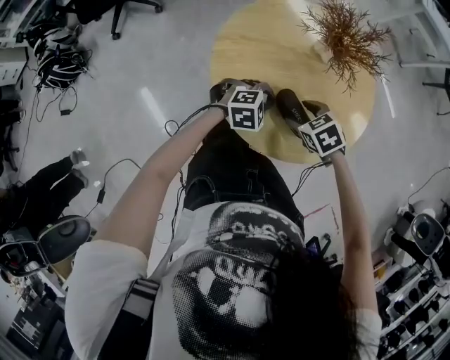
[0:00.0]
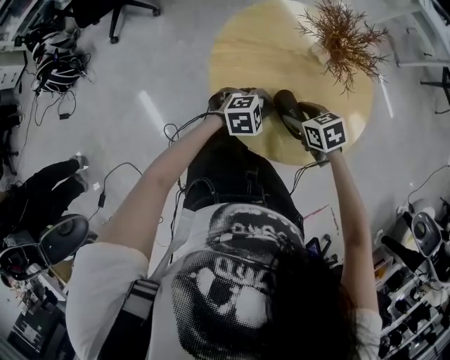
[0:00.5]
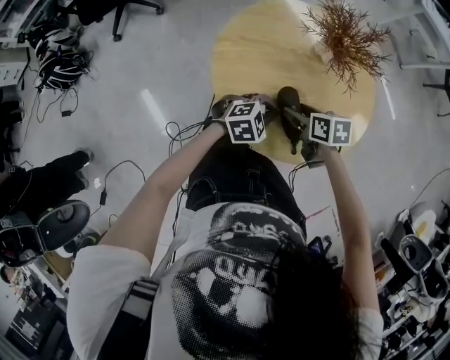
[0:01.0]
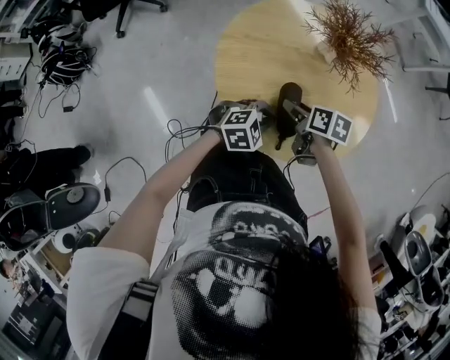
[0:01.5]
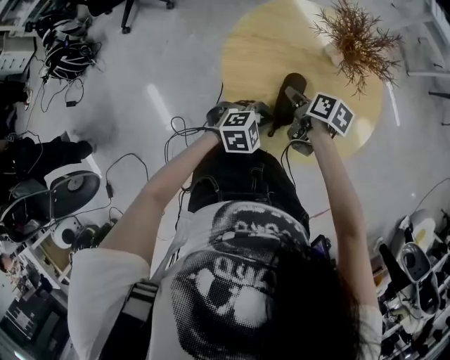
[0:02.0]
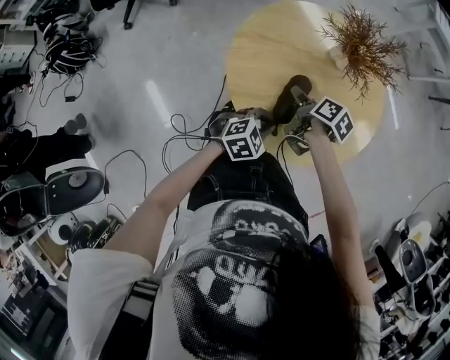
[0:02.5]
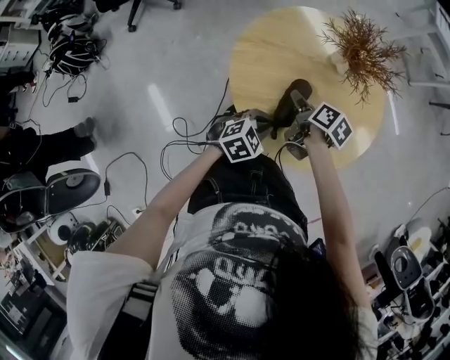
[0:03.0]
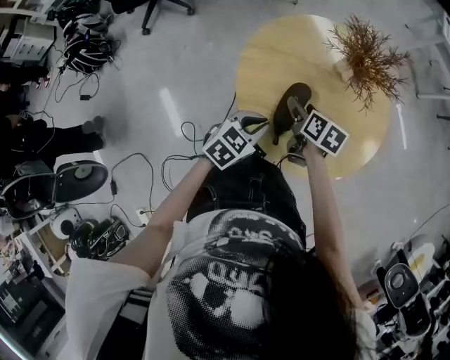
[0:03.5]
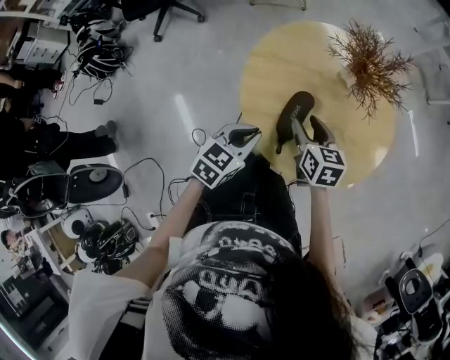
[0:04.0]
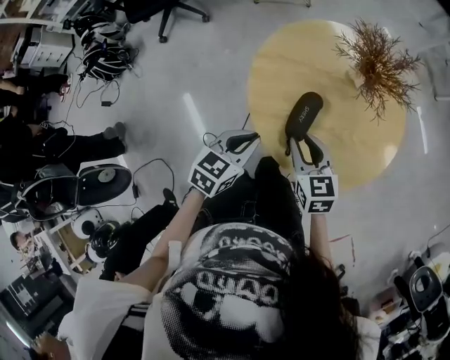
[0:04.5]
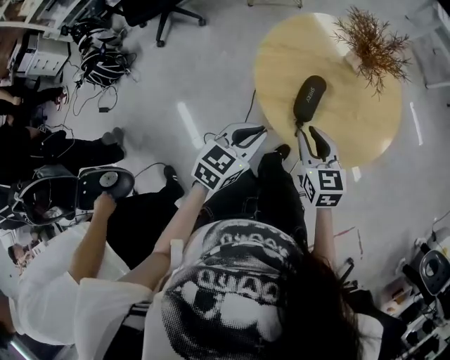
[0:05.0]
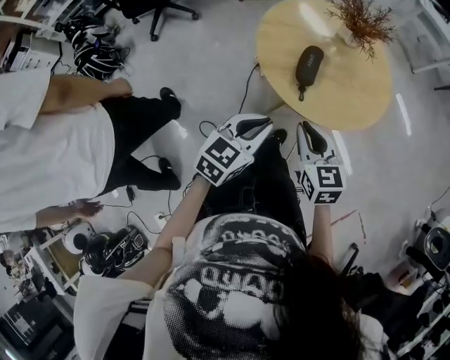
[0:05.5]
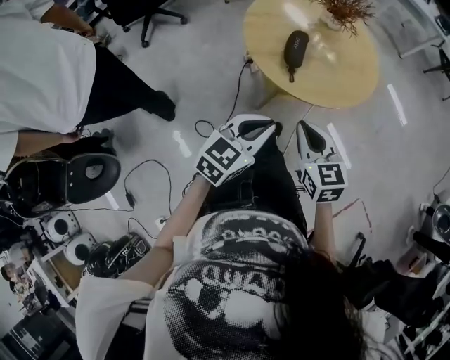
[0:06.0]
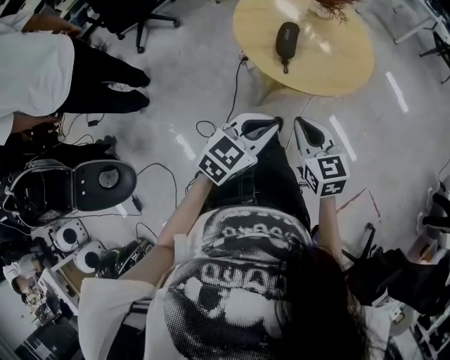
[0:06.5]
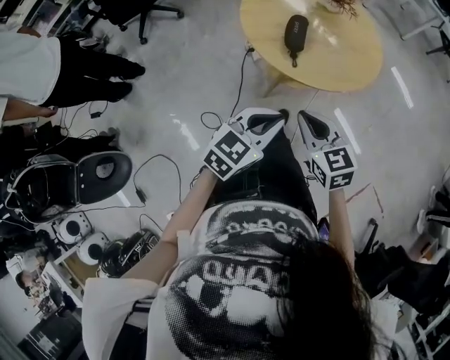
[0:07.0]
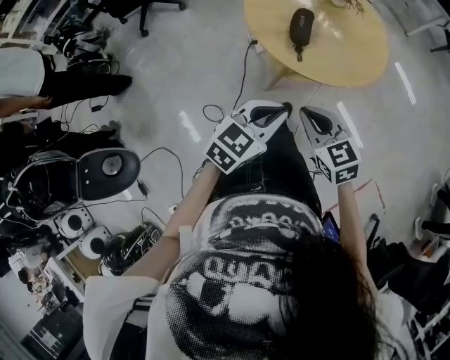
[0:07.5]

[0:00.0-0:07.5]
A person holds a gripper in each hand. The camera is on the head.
0:00.0 to 0:02.0: The right gripper shifts by some 5 cm, and rolls clockwise, seen from behind, by roughly 60 degrees. Meanwhile the left gripper changes place by some 5 cm.
0:02.0 to 0:04.0: The left gripper moves to the left and upward, roughly 10 cm, and changes its angle by roughly 50 degrees, while the right gripper is displaced upward by roughly 5 cm, and changes its angle by roughly 40 degrees.
0:04.0 to 0:05.5: The left gripper moves backward and upward, approximately 20 cm; the right gripper travels backward by approximately 25 cm, and closes.
0:05.5 to 0:07.5: Both grippers travel together backward, about 5 cm.

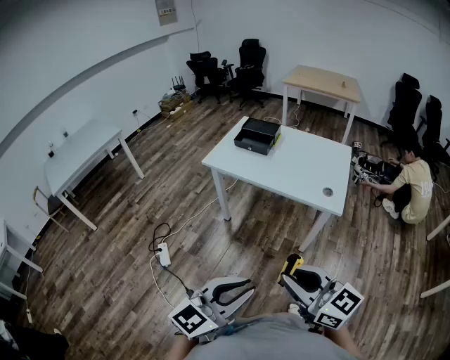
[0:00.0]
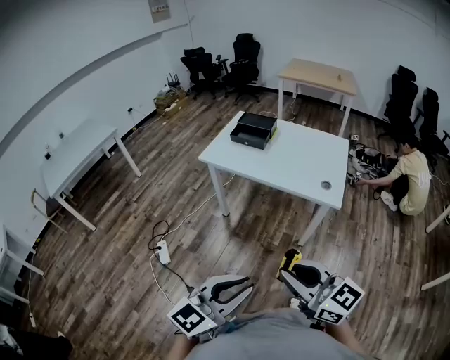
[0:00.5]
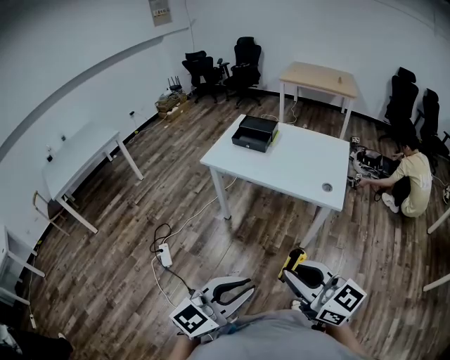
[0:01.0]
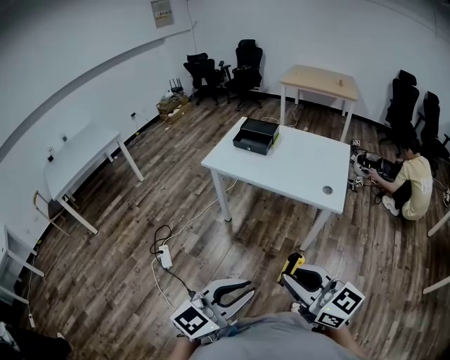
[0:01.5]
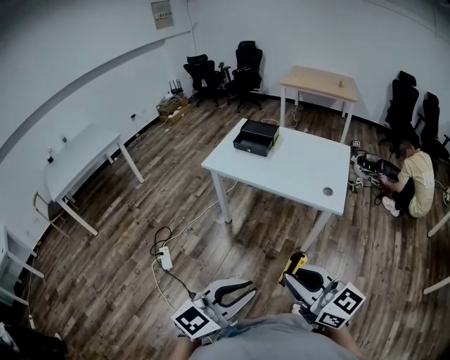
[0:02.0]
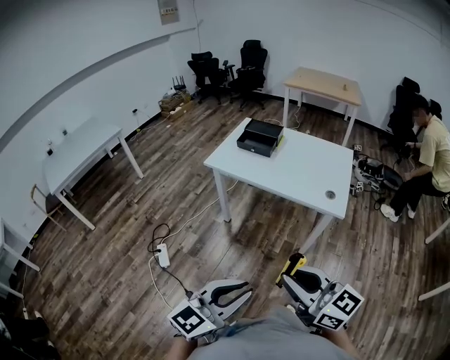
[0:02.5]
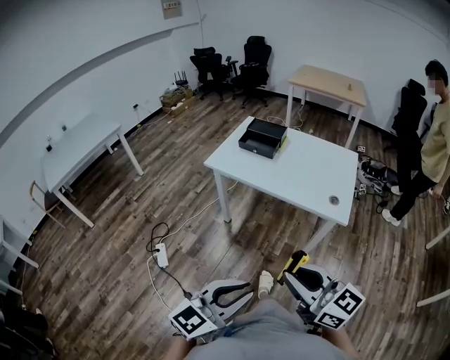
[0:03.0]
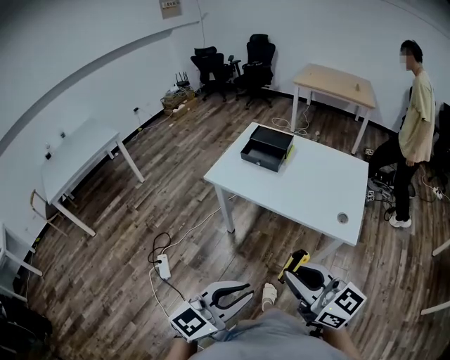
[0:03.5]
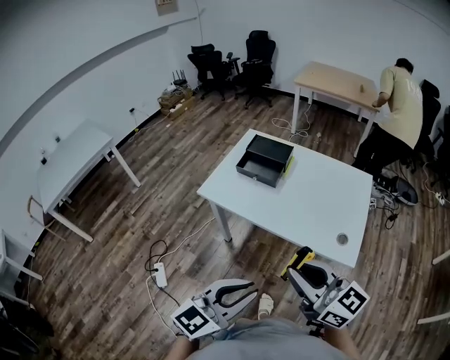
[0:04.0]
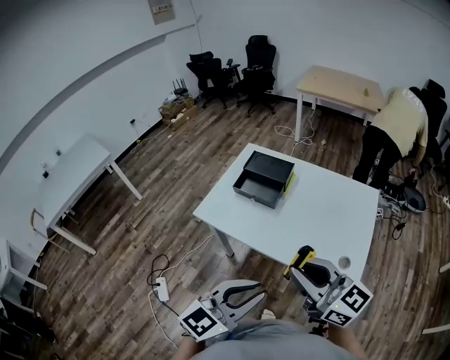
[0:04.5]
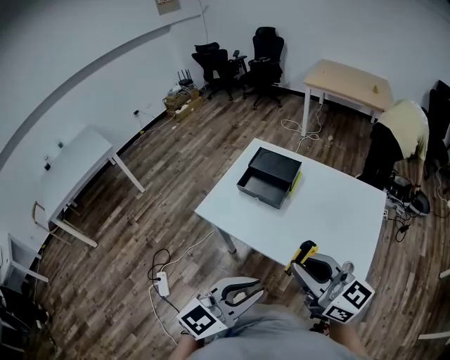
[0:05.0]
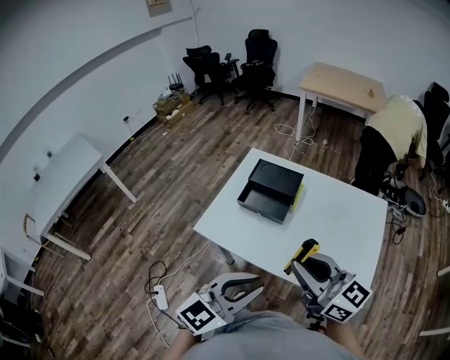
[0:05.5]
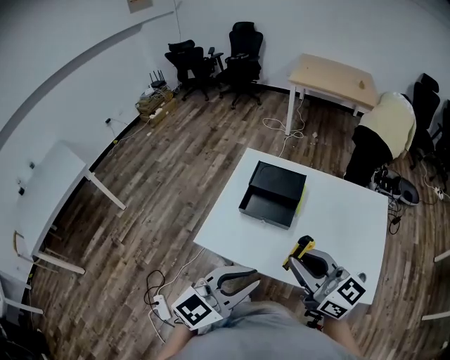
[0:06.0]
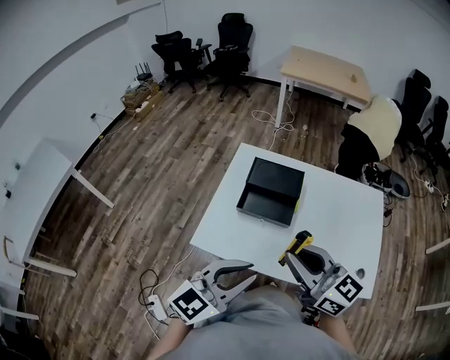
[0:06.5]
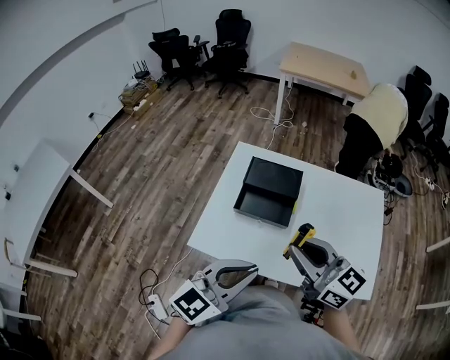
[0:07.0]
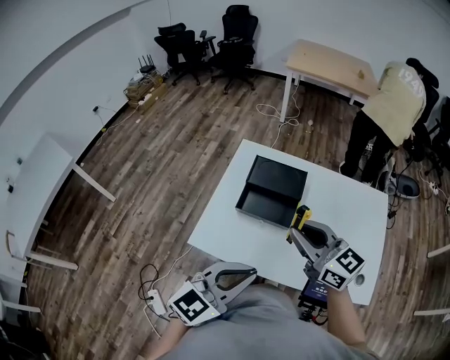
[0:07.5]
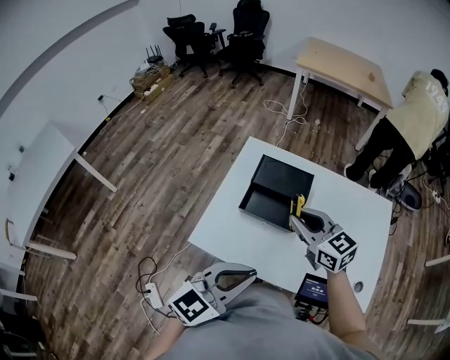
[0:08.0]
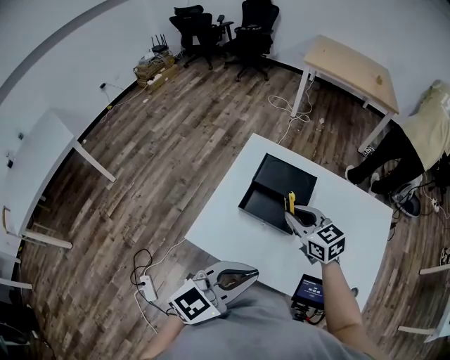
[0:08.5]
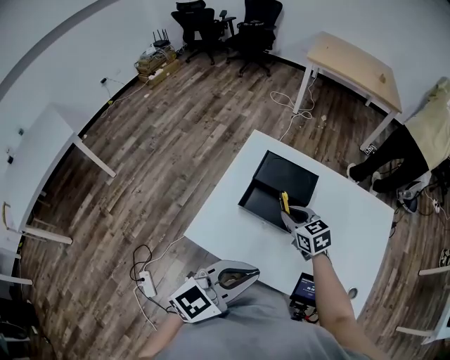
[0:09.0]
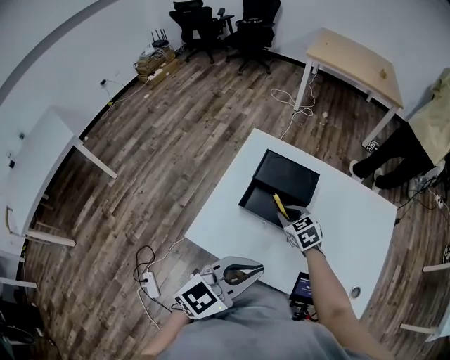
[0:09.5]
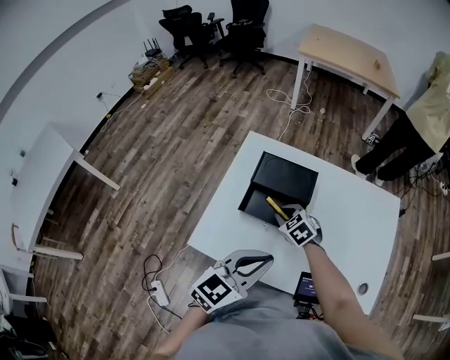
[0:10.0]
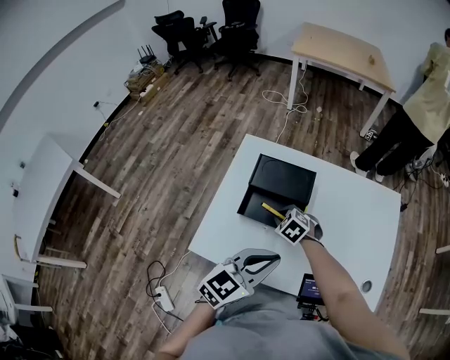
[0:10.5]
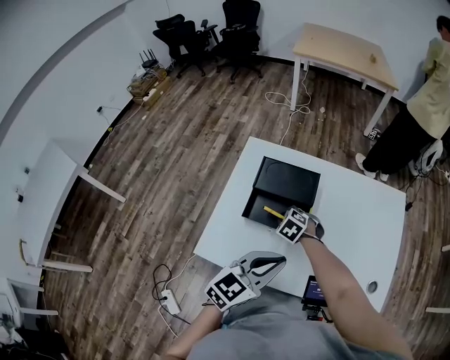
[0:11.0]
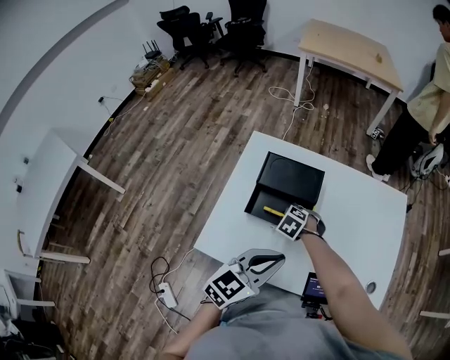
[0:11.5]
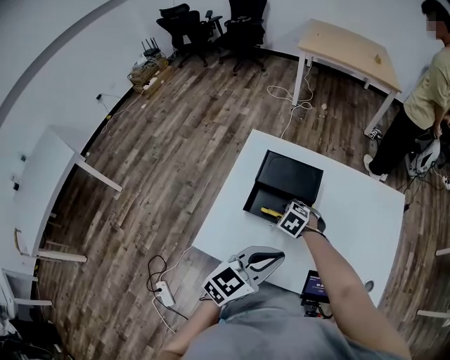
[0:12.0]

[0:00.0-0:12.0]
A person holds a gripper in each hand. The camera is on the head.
0:00.0 to 0:02.0: Both grippers stay put.
0:02.0 to 0:04.0: Both grippers move forward, about 30 cm.
0:04.0 to 0:06.0: The two grippers go roughly 30 cm forward.
0:06.0 to 0:08.0: The left gripper goes roughly 5 cm forward; the right gripper goes roughly 20 cm forward and downward.
0:08.0 to 0:10.0: The right gripper travels downward by roughly 20 cm, and tips its fingers downward by about 40 degrees. Meanwhile the left gripper heads forward and downward, covering about 10 cm.

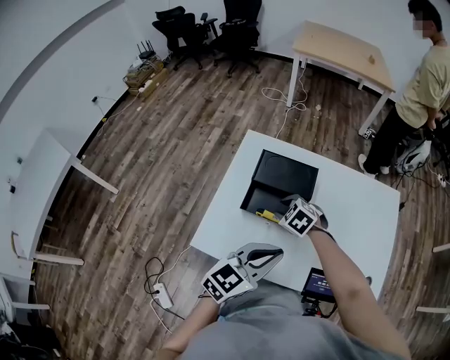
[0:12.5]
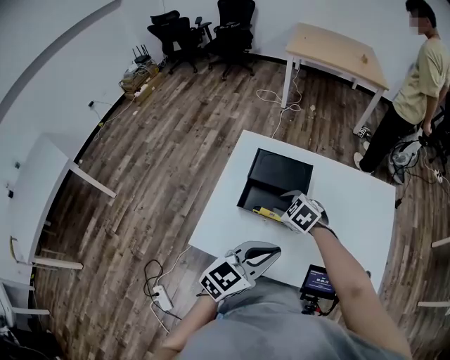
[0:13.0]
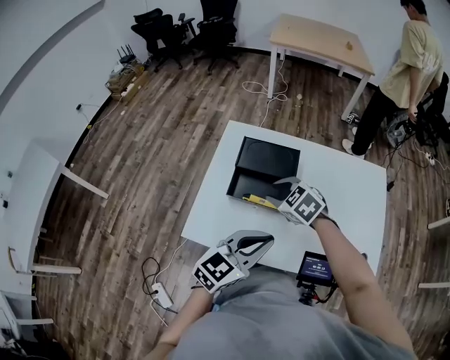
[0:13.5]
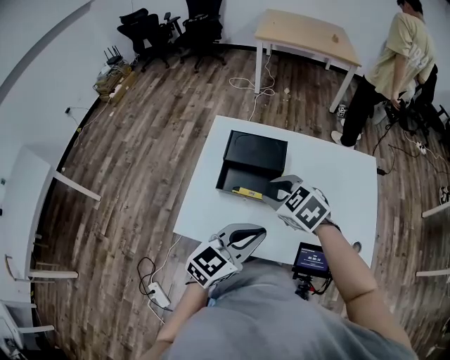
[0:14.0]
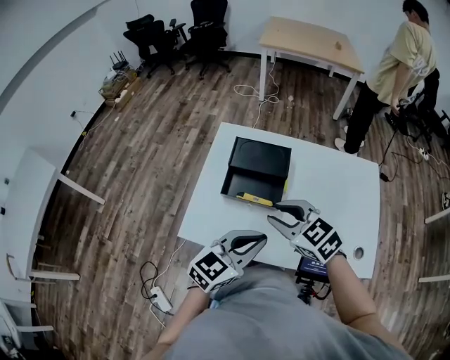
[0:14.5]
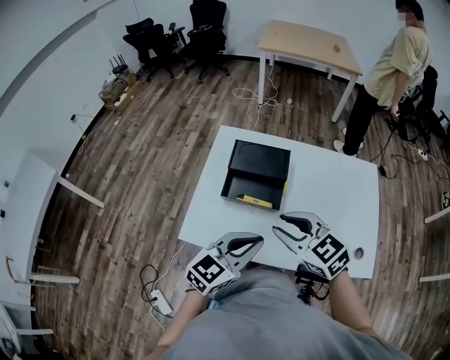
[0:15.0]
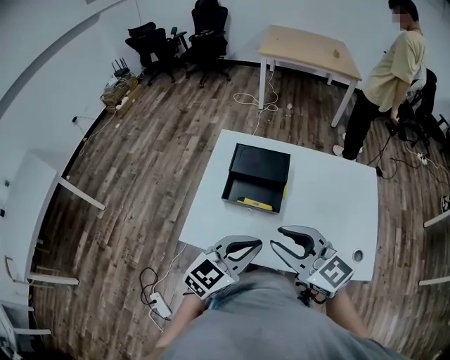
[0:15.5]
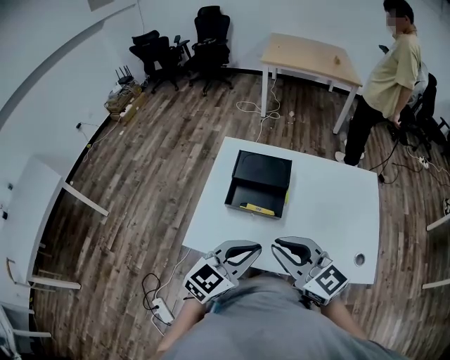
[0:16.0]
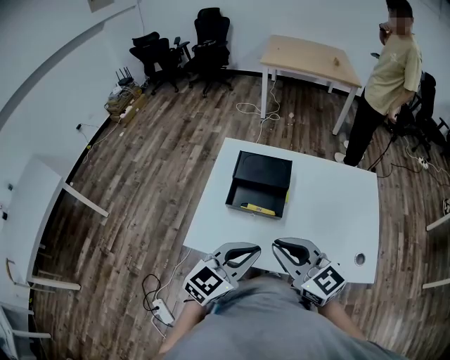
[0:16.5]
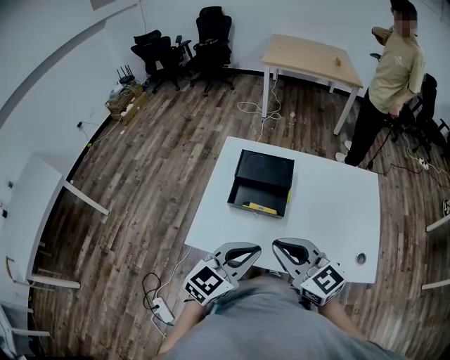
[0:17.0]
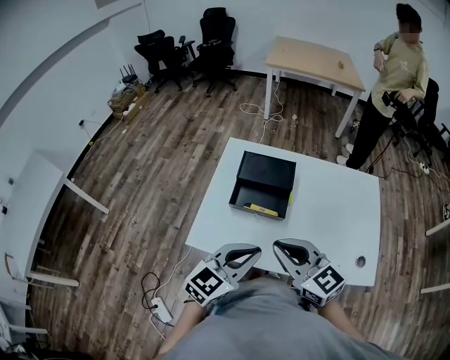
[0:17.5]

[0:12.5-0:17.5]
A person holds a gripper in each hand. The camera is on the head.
0:12.5 to 0:15.0: The right gripper moves upward and backward, about 25 cm, and tips its fingers upward by roughly 30 degrees.
0:15.0 to 0:17.5: The right gripper moves backward, roughly 5 cm, and closes up.

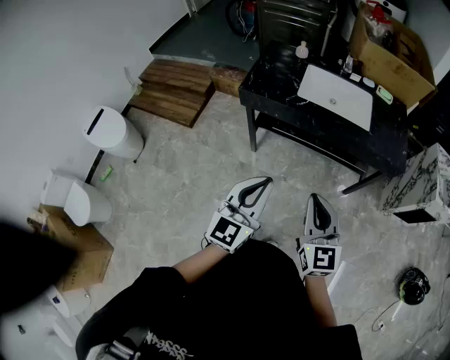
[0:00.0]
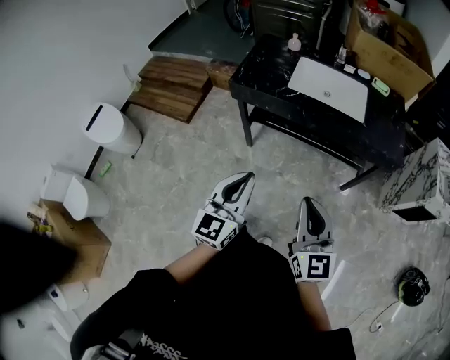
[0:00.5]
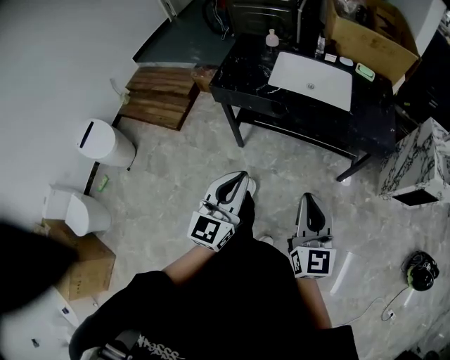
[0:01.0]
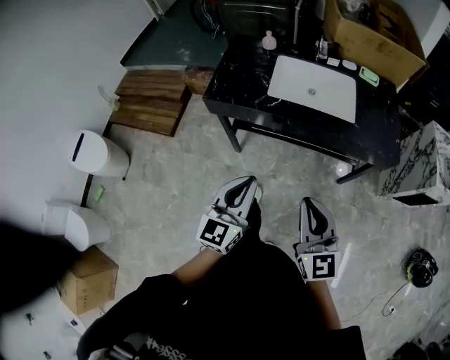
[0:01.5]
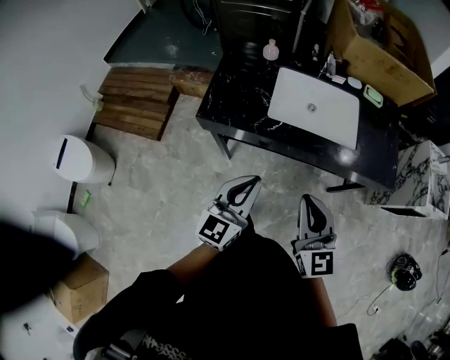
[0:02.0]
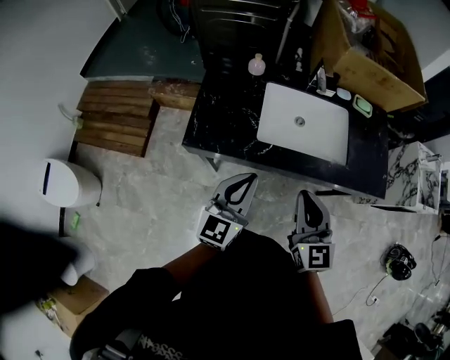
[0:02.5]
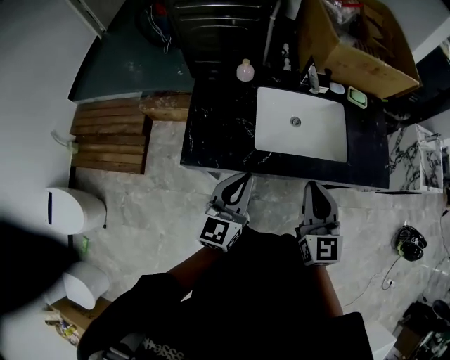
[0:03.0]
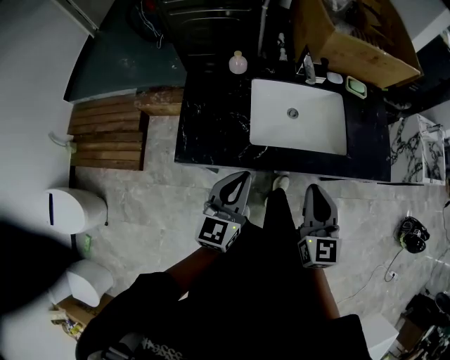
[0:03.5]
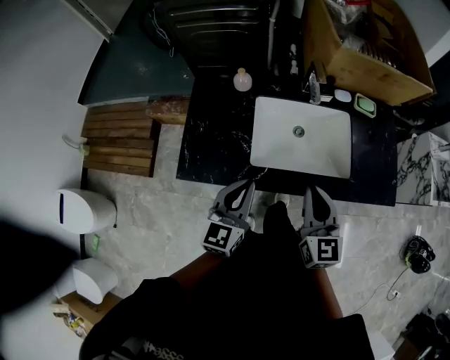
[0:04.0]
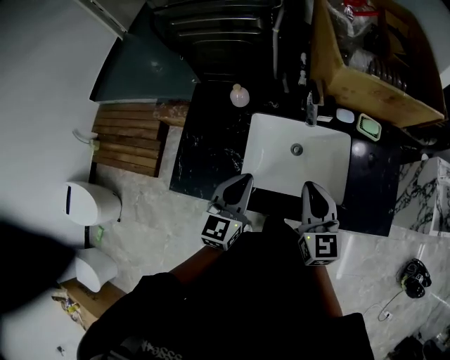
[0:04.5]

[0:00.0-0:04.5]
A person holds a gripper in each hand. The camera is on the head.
0:00.0 to 0:02.0: Both grippers travel together forward, some 25 cm.
0:02.0 to 0:04.5: Both grippers travel together forward, about 30 cm.
